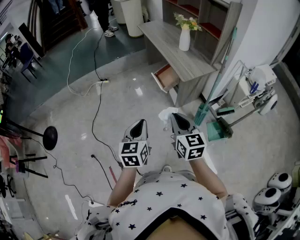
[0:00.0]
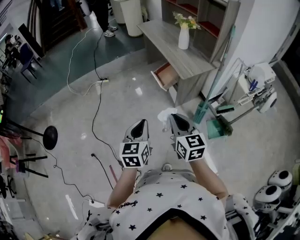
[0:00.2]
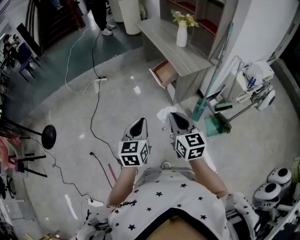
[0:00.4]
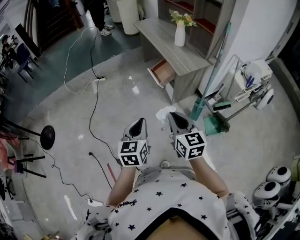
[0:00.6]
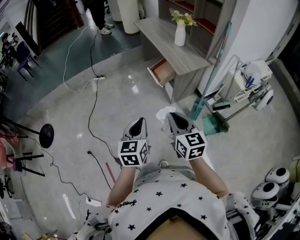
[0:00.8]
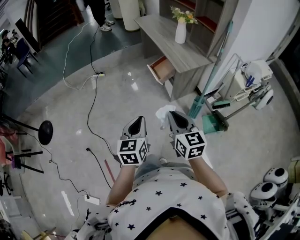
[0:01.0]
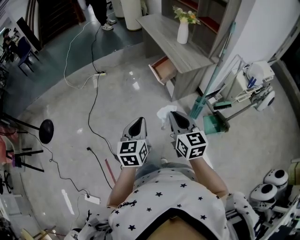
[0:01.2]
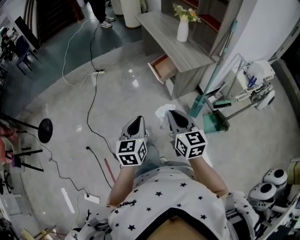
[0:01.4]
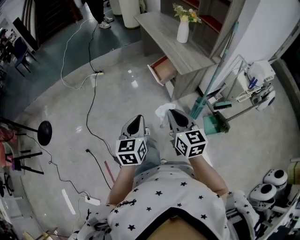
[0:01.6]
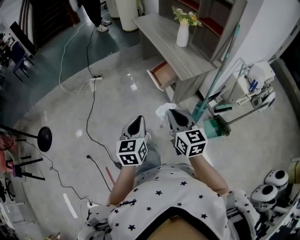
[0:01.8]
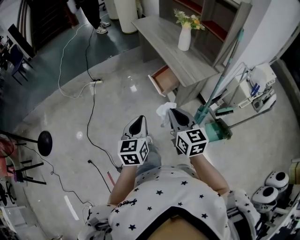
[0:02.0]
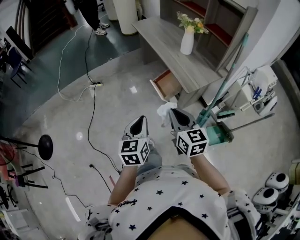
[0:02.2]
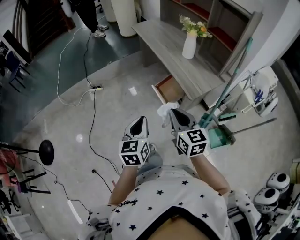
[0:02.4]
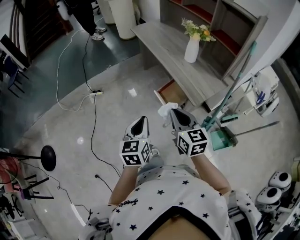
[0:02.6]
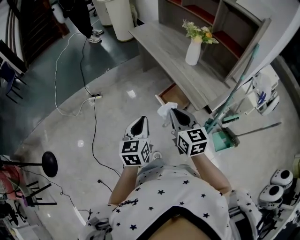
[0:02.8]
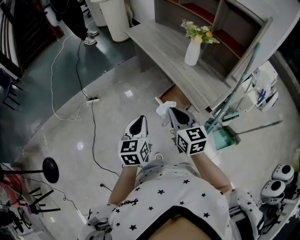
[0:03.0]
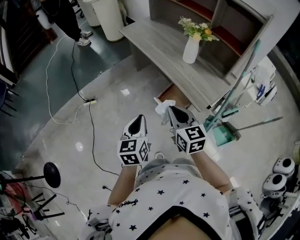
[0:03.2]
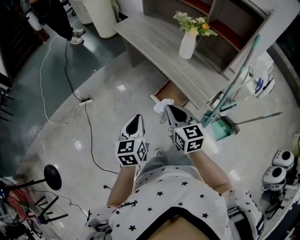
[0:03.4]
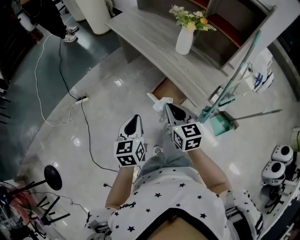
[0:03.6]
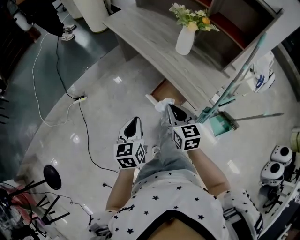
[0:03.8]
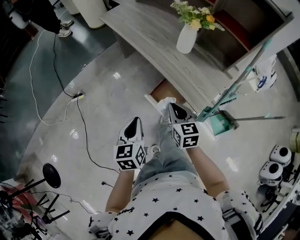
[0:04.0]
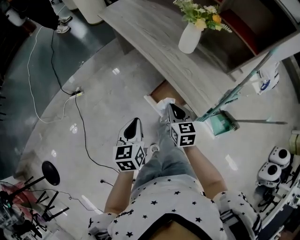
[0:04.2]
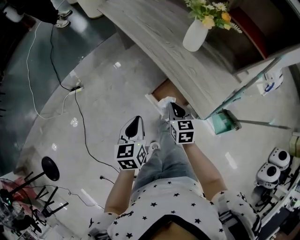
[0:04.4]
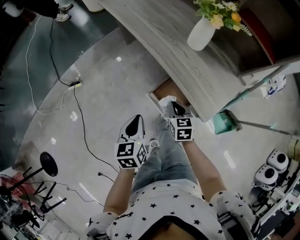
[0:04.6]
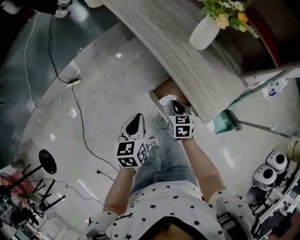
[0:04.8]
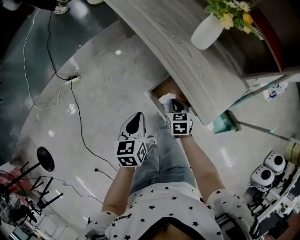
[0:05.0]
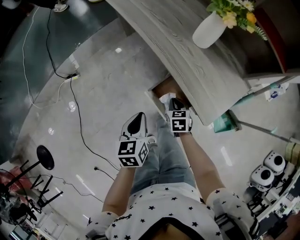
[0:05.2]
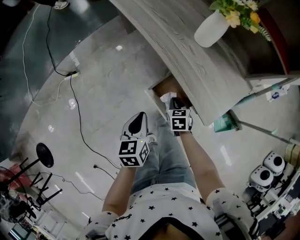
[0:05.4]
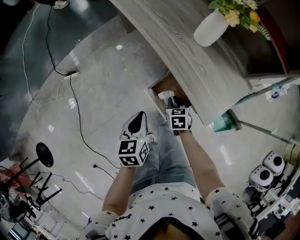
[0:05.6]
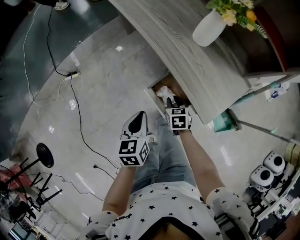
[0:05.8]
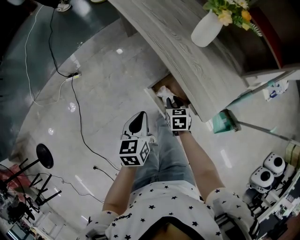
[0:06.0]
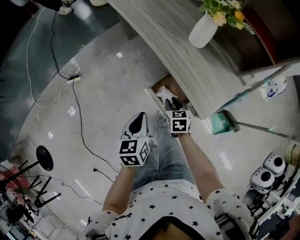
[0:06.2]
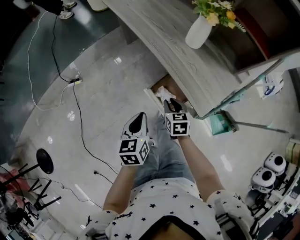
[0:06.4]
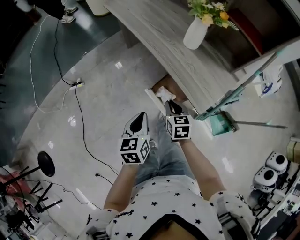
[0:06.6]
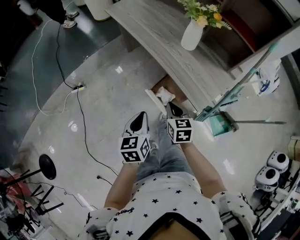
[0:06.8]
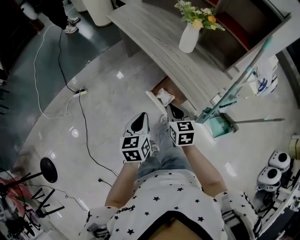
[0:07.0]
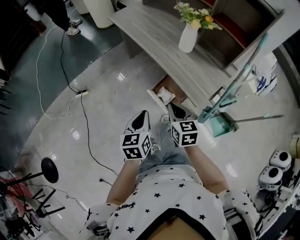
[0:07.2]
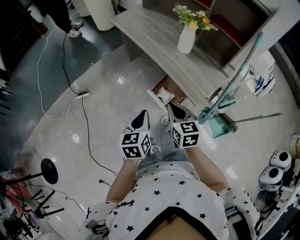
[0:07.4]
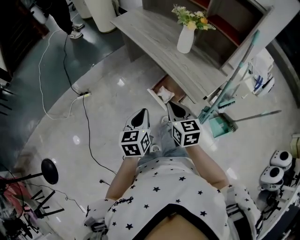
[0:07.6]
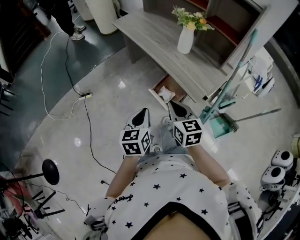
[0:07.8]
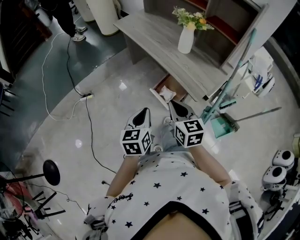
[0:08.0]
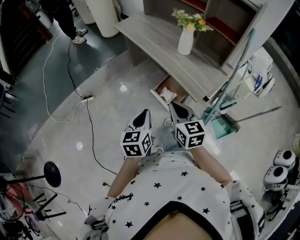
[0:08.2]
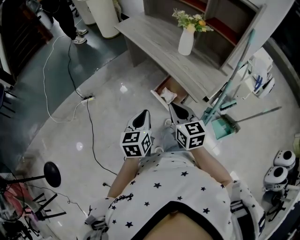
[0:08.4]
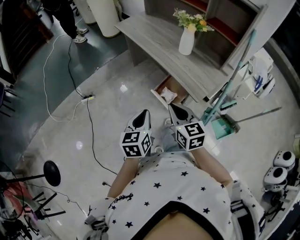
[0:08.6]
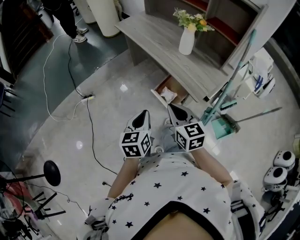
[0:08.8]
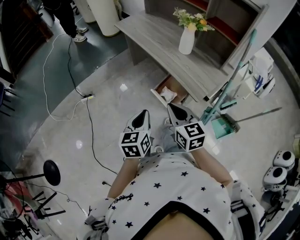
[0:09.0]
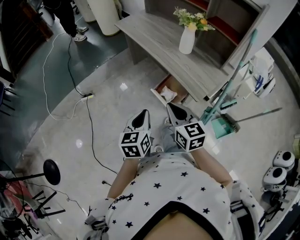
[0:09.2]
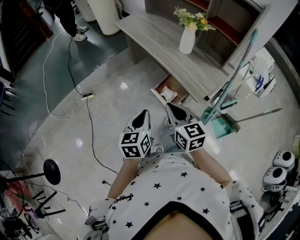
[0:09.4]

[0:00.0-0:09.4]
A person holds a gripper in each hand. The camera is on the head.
0:00.0 to 0:01.6: The grippers move only a little.
0:01.6 to 0:03.2: The grippers both shift forward by about 35 cm.
0:03.2 to 0:04.8: The right gripper heads downward and forward, covering some 35 cm, and turns by approximately 30 degrees. Meanwhile the left gripper heads downward and forward, covering approximately 20 cm.
0:04.8 to 0:06.2: The right gripper opens.
0:06.2 to 0:07.8: The right gripper heads upward and backward, covering some 30 cm, changes its angle by roughly 30 degrees, and closes. Meanwhile the left gripper travels upward and backward by some 15 cm.
0:07.8 to 0:09.4: The grippers stay close to where they were, moving slightly.

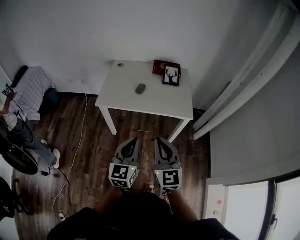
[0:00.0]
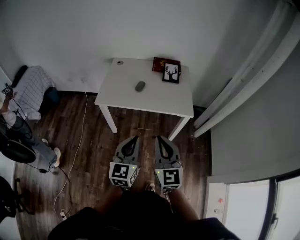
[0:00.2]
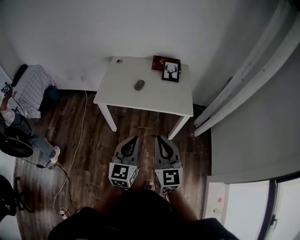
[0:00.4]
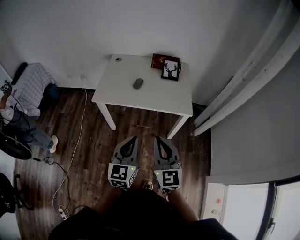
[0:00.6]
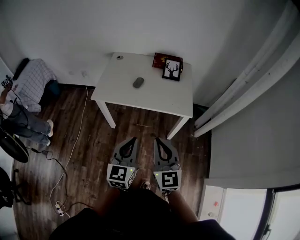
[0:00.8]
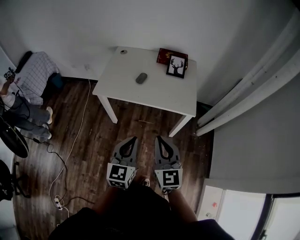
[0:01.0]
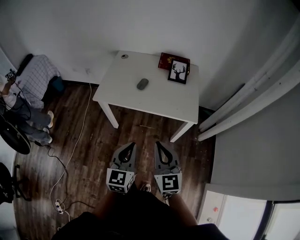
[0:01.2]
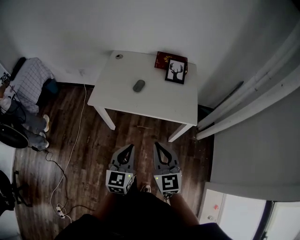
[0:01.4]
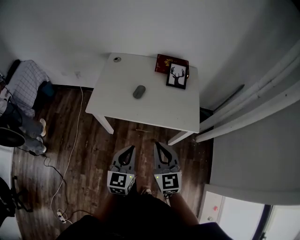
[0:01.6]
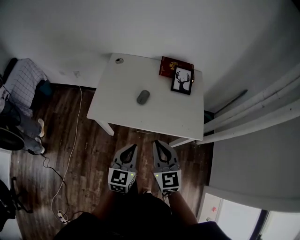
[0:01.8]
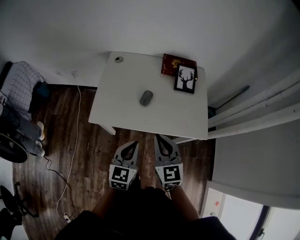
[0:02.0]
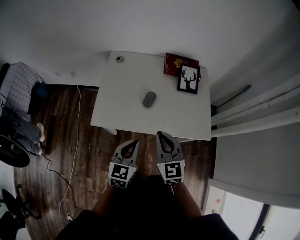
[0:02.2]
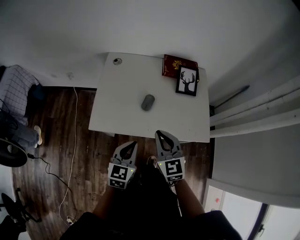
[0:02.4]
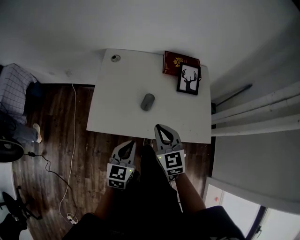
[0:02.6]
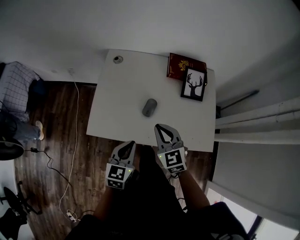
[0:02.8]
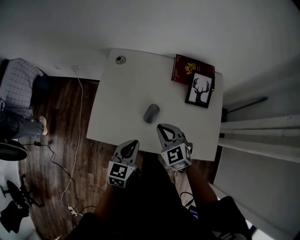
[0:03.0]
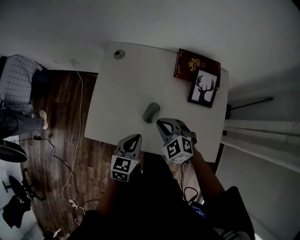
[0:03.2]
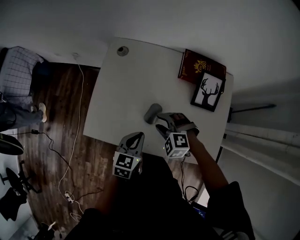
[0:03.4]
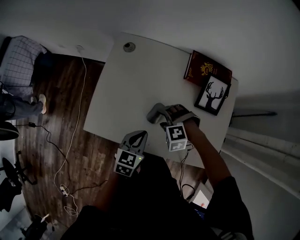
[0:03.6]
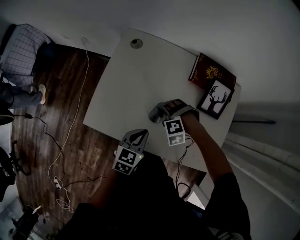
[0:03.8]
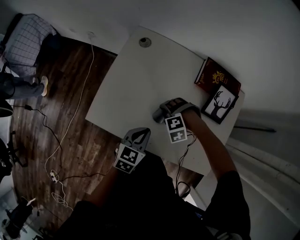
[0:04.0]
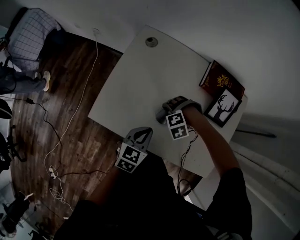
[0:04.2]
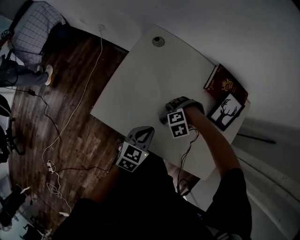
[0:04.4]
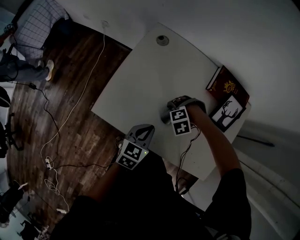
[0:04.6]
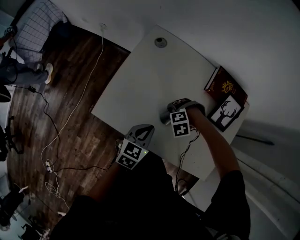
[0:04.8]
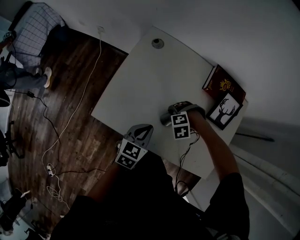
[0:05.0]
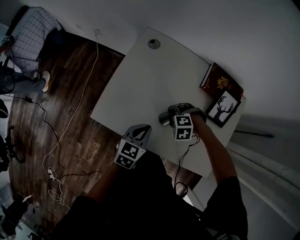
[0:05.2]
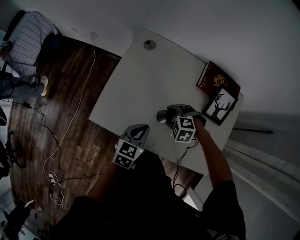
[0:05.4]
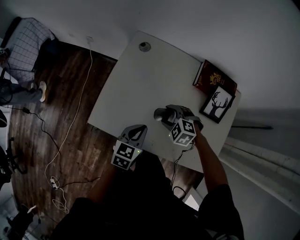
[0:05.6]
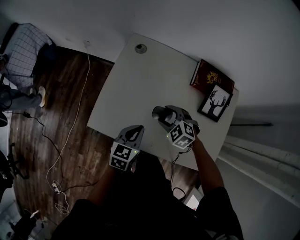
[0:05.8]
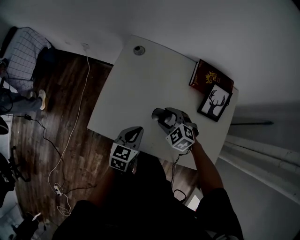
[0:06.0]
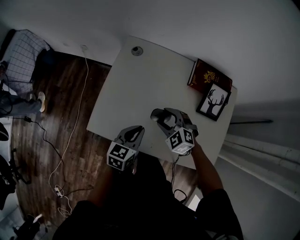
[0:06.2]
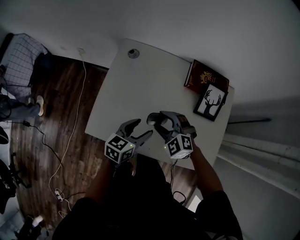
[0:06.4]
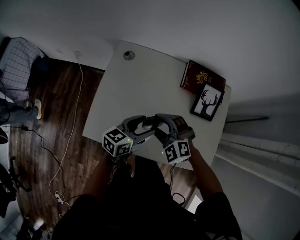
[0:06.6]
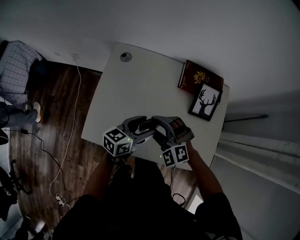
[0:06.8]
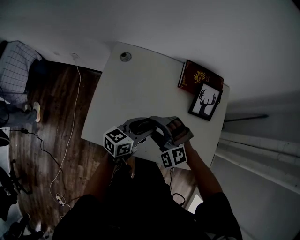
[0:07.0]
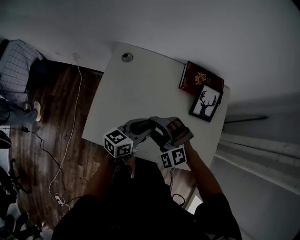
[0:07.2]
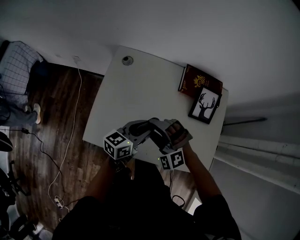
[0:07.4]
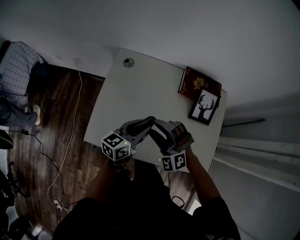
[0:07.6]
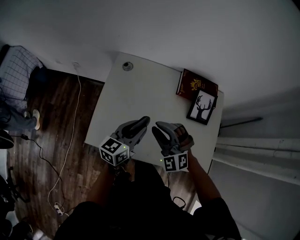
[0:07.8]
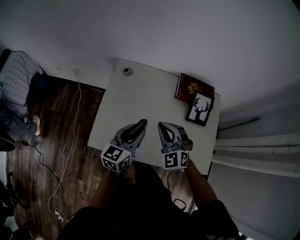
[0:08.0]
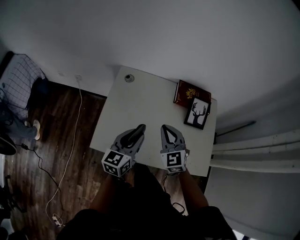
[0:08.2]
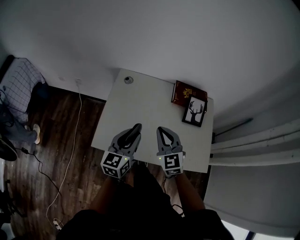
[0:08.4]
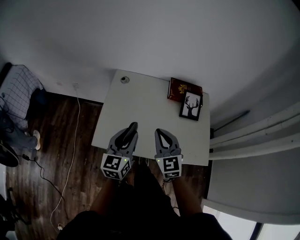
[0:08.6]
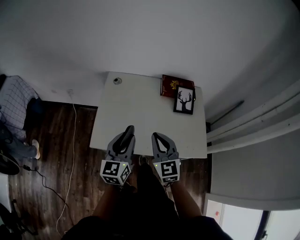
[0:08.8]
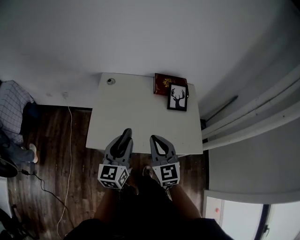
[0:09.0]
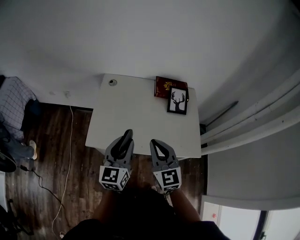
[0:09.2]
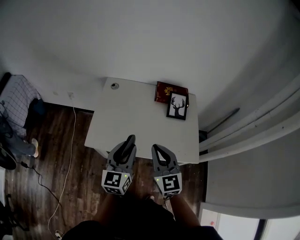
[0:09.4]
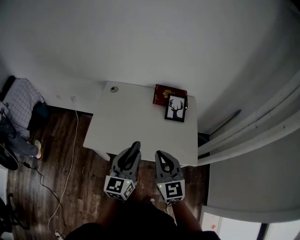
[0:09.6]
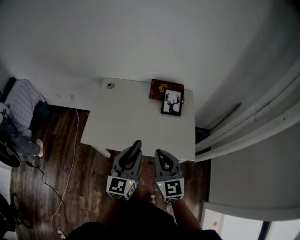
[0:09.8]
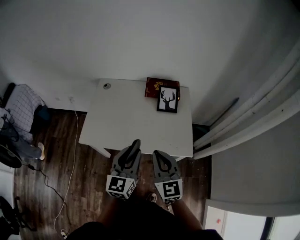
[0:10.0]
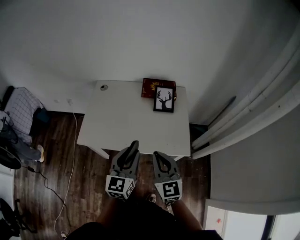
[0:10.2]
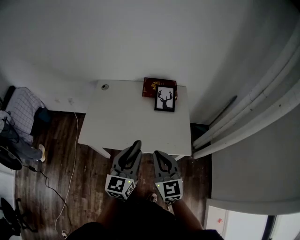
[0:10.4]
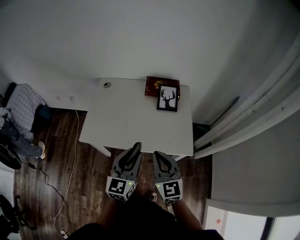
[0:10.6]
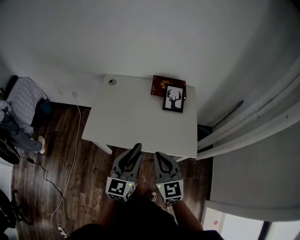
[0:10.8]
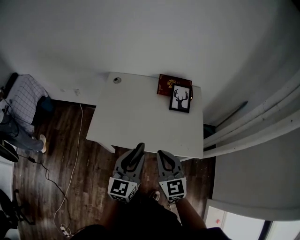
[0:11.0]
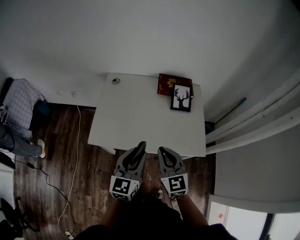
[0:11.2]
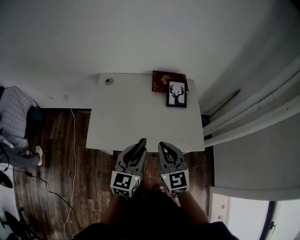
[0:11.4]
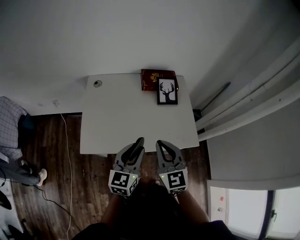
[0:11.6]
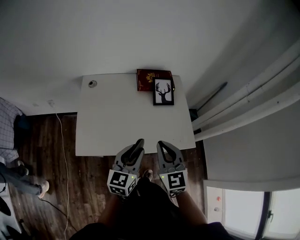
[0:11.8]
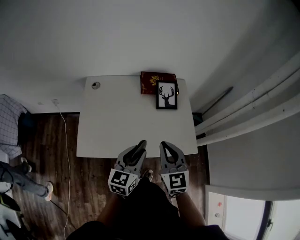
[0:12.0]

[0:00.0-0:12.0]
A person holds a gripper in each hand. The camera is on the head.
0:00.0 to 0:01.6: The two grippers go about 15 cm forward and downward.
0:01.6 to 0:03.0: Both grippers move forward, about 30 cm. The right gripper rotates about 30 degrees.
0:03.0 to 0:04.4: The right gripper goes roughly 20 cm downward, tilts its fingers about 50 degrees downward, and opens its fingers. The left gripper travels downward by about 5 cm.
0:04.4 to 0:06.0: The right gripper shifts some 10 cm upward, and tips its fingers upward by some 30 degrees.
0:06.0 to 0:07.6: The right gripper heads upward, covering approximately 10 cm, and rotates approximately 40 degrees; the left gripper travels forward and upward by roughly 10 cm, turns by approximately 30 degrees, and opens.
0:07.6 to 0:09.0: The two grippers go some 20 cm backward and upward. The right gripper rolls clockwise, seen from behind, by about 50 degrees, and closes. The left gripper changes its angle by approximately 30 degrees.
0:09.0 to 0:10.4: Both grippers travel together to the right and backward, roughly 20 cm.
0:10.4 to 0:12.0: The right gripper heads forward and to the left, covering about 10 cm. The left gripper heads forward, downward and to the left, covering roughly 10 cm, and swivels some 20 degrees.

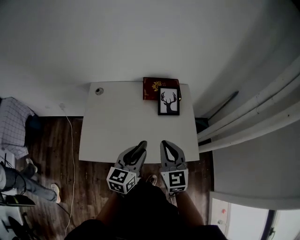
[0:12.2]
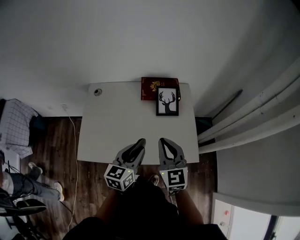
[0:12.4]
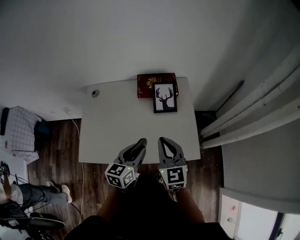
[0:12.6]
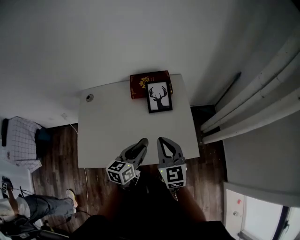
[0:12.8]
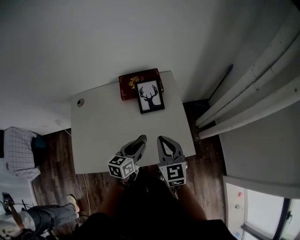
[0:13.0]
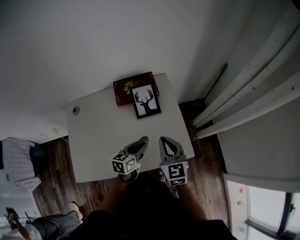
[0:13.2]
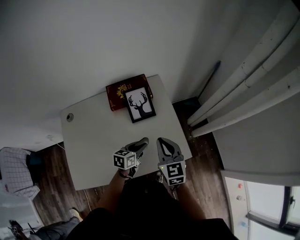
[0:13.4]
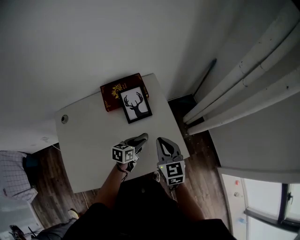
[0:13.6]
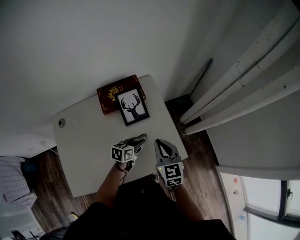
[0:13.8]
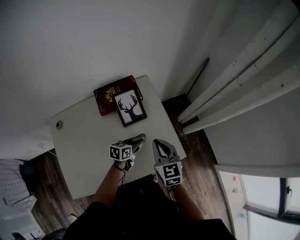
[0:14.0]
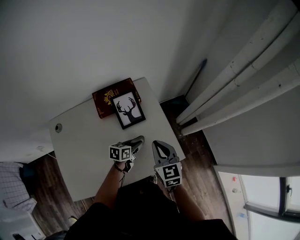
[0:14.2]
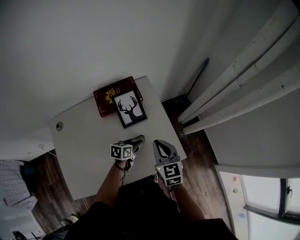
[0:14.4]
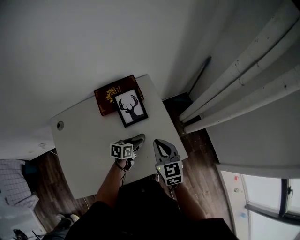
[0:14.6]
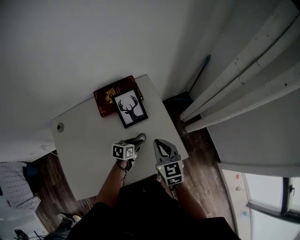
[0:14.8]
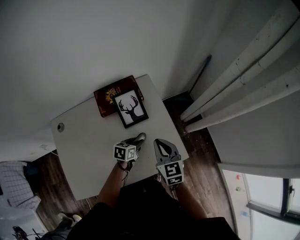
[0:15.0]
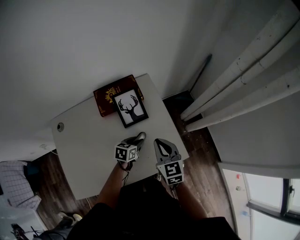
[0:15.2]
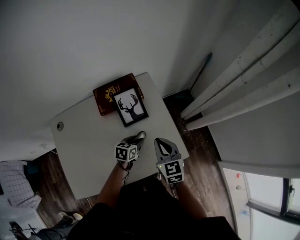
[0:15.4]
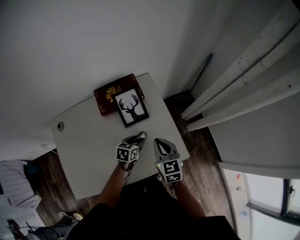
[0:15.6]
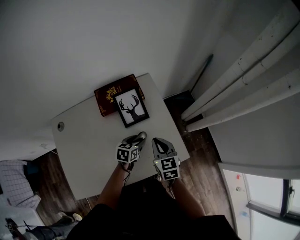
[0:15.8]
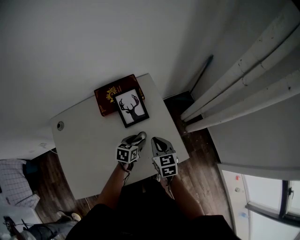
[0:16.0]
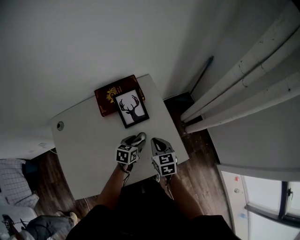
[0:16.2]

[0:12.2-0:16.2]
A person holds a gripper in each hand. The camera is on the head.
0:12.2 to 0:13.6: The right gripper moves about 20 cm, and changes its angle by approximately 20 degrees. Meanwhile the left gripper shifts by about 30 cm, and swivels some 40 degrees.
0:13.6 to 0:14.8: The grippers stay close to where they were, moving slightly.
0:14.8 to 0:16.2: The right gripper moves downward, roughly 10 cm.
